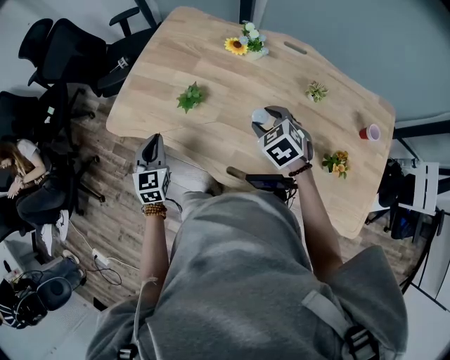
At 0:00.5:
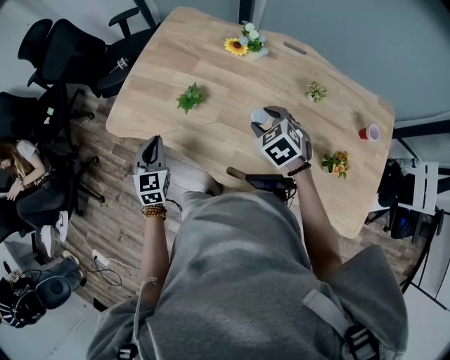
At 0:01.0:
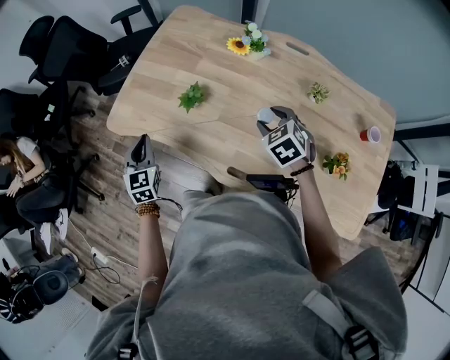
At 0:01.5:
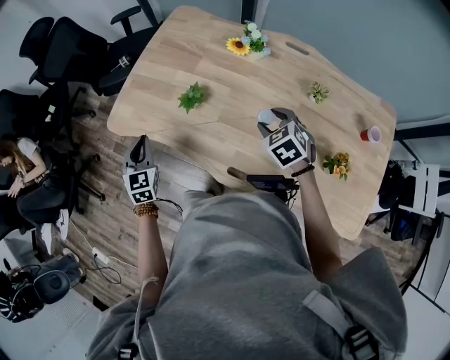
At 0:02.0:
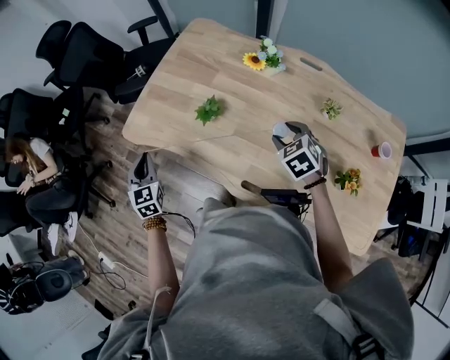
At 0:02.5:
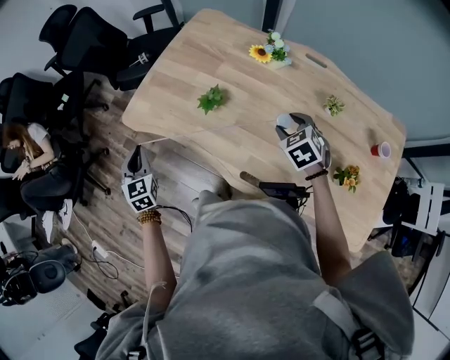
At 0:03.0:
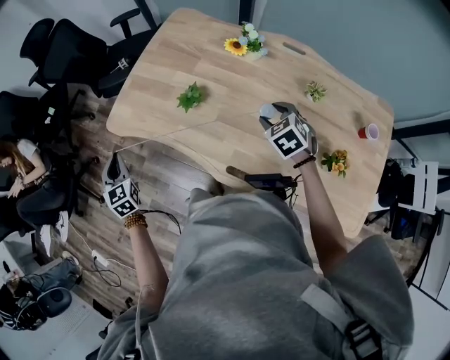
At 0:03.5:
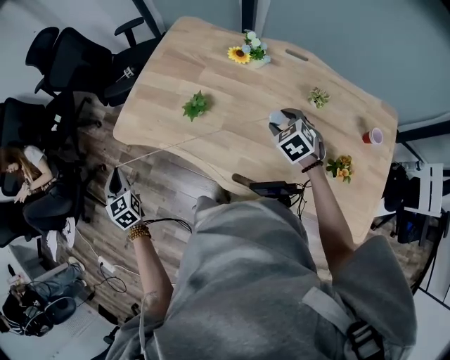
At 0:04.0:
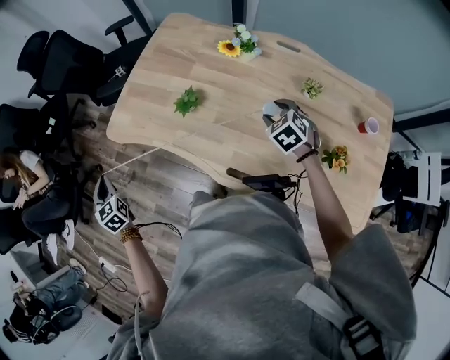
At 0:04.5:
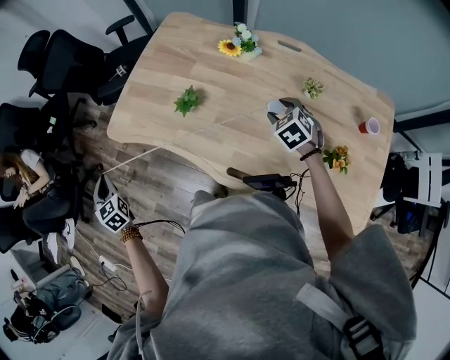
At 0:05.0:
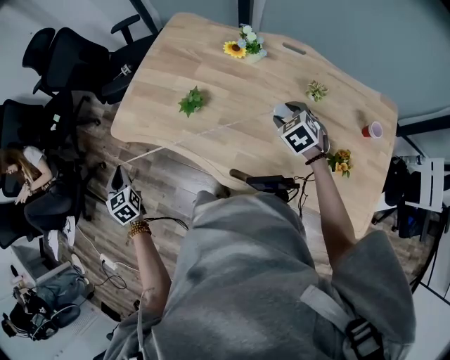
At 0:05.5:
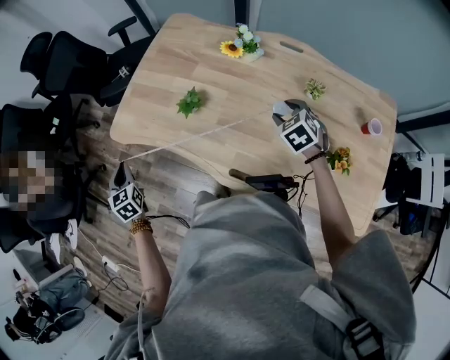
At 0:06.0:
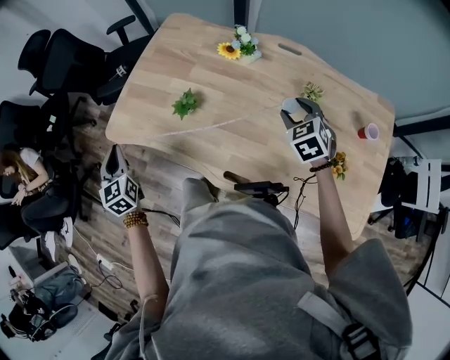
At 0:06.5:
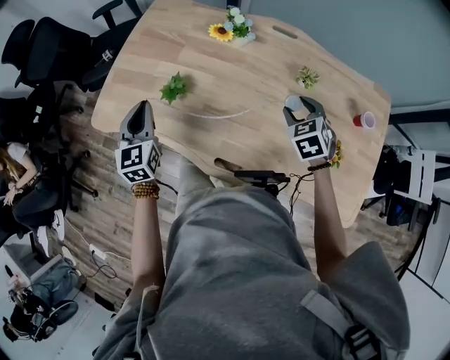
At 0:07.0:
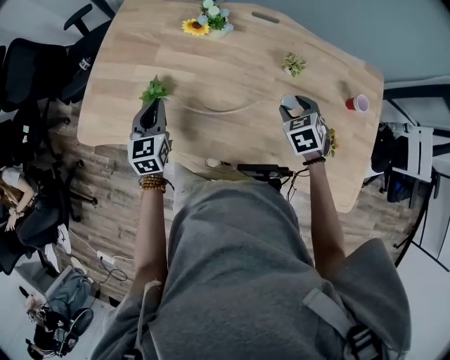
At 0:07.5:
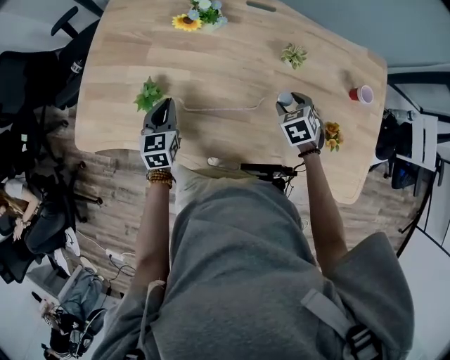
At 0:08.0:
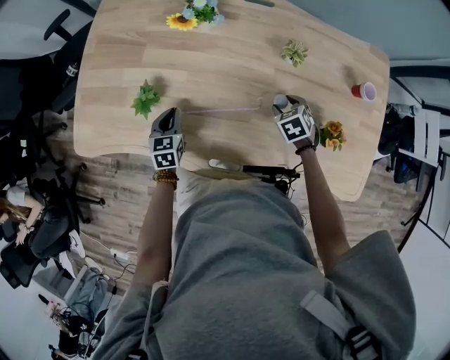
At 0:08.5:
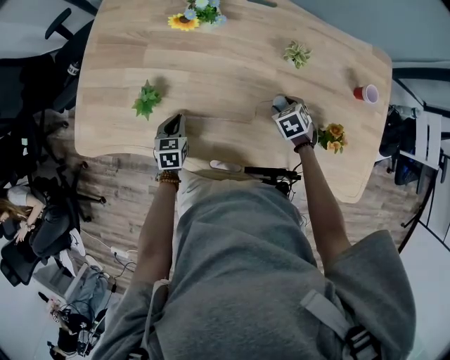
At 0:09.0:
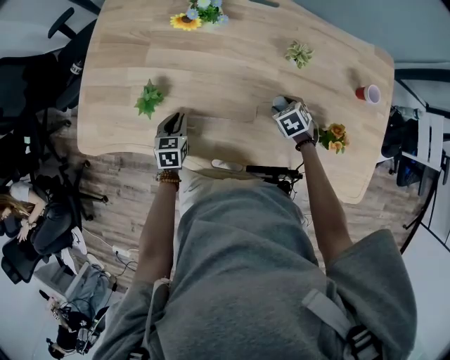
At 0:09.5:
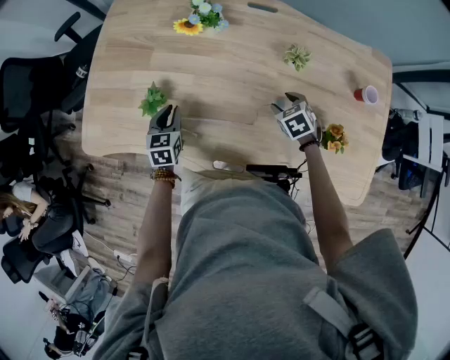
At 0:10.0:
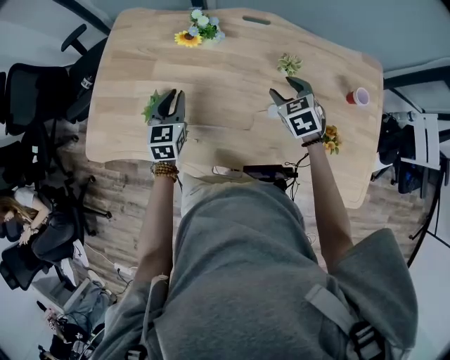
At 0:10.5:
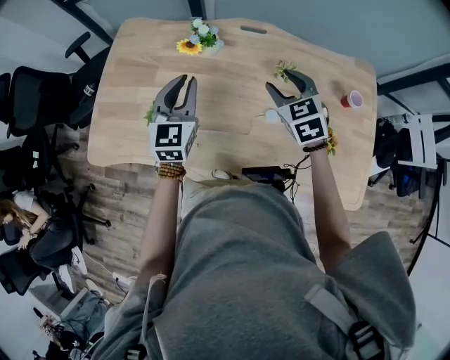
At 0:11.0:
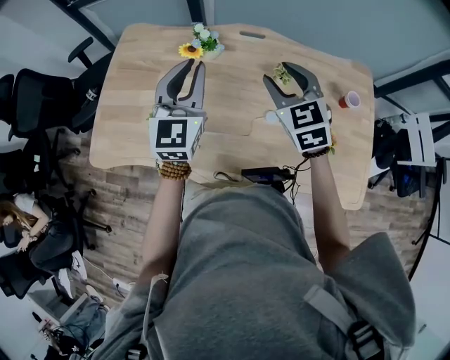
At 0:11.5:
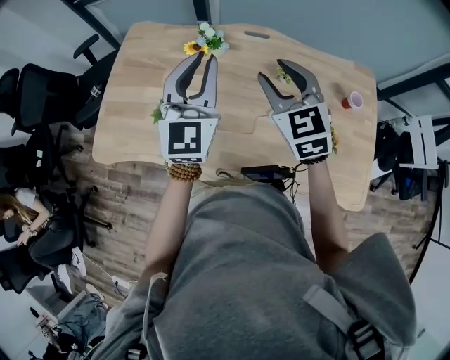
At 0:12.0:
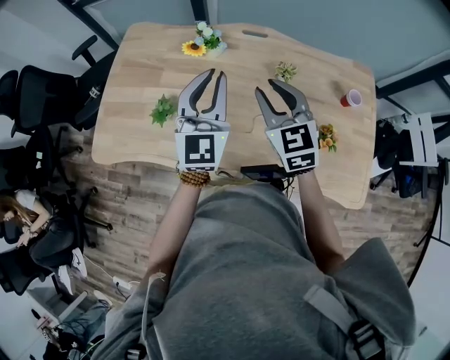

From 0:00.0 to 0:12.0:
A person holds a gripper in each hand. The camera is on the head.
From 0:00.0 to 0:02.0: The left gripper goes roughly 10 cm to the left.
From 0:02.0 to 0:04.0: The left gripper heads to the left, covering roughly 15 cm.
From 0:04.0 to 0:06.0: The right gripper heads to the right and upward, covering some 10 cm. The left gripper goes about 15 cm to the right.
From 0:06.0 to 0:08.0: The left gripper heads to the right, downward and forward, covering about 35 cm, and turns by some 40 degrees, while the right gripper heads downward, covering about 20 cm, and swivels some 30 degrees.
From 0:08.0 to 0:10.0: The two grippers go some 15 cm upward and forward. The right gripper turns by approximately 20 degrees.
From 0:10.0 to 0:12.0: The right gripper shifts roughly 20 cm upward, rotates some 30 degrees, and closes its fingers. The left gripper heads upward and to the right, covering roughly 25 cm, and tilts its fingers about 30 degrees upward.

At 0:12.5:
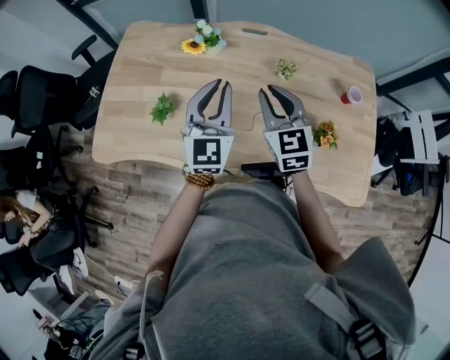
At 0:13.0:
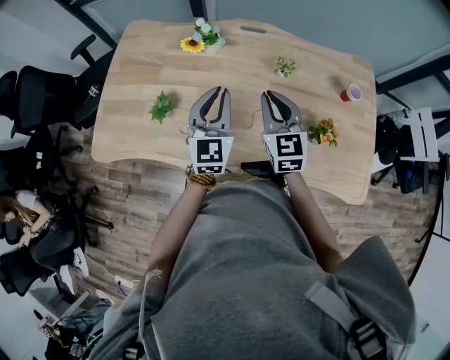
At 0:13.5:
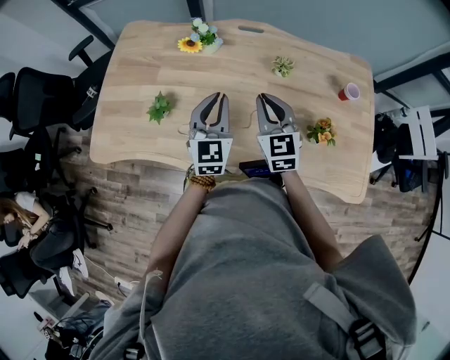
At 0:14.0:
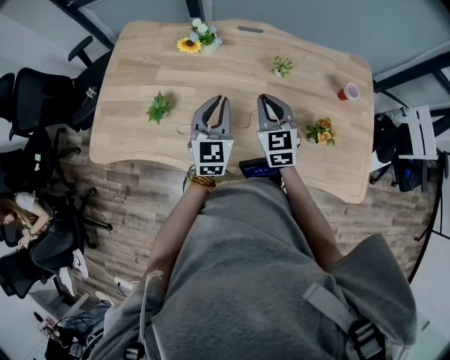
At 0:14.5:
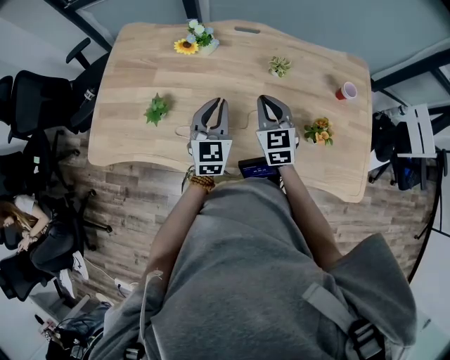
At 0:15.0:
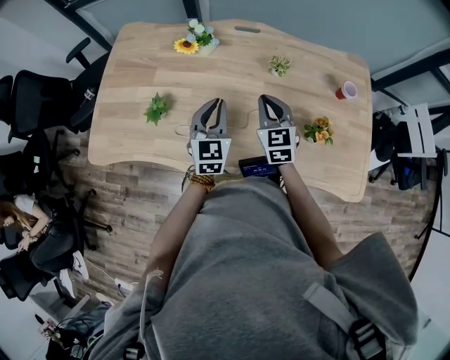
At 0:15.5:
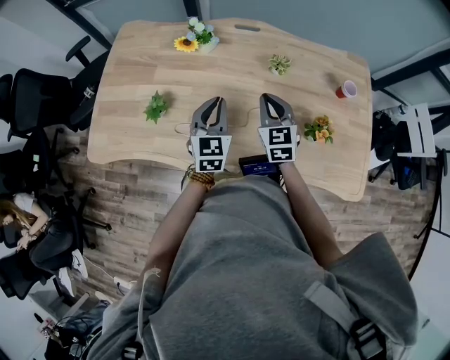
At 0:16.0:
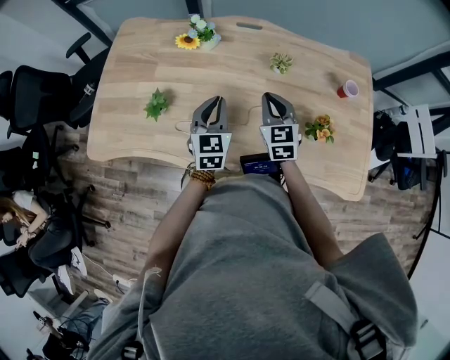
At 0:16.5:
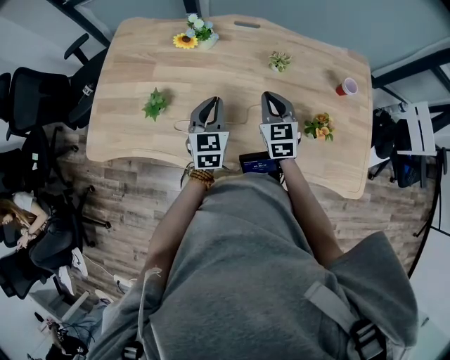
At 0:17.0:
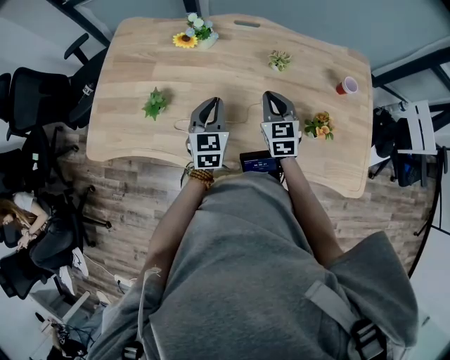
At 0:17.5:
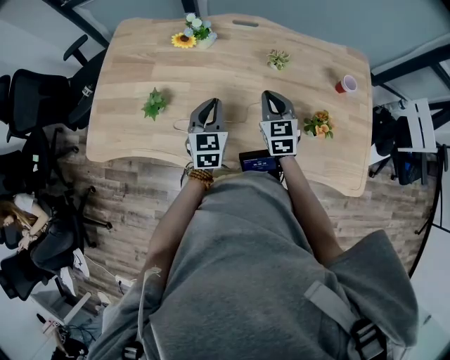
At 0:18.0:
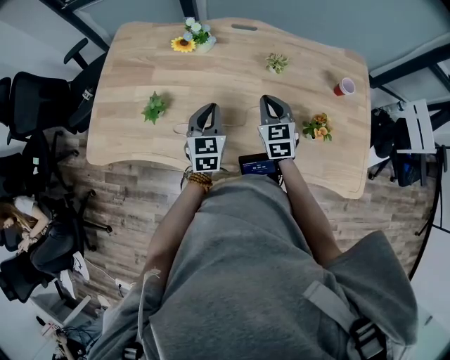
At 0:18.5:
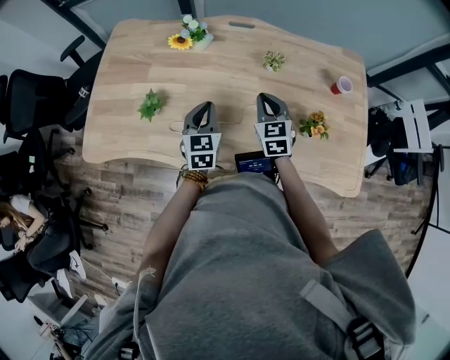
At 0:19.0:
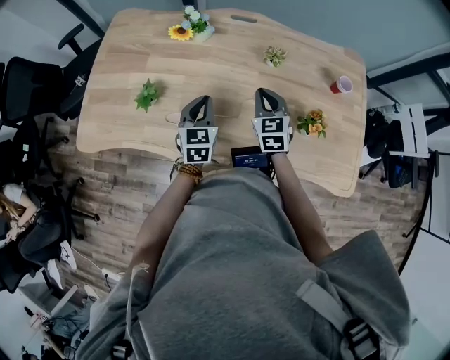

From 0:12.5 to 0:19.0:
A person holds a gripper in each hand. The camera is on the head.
From 0:12.5 to 0:14.5: Both grippers travel together downward, about 10 cm.
From 0:14.5 to 0:17.0: The grippers move only a little.
From 0:17.0 to 0:19.0: The grippers make only small movements.

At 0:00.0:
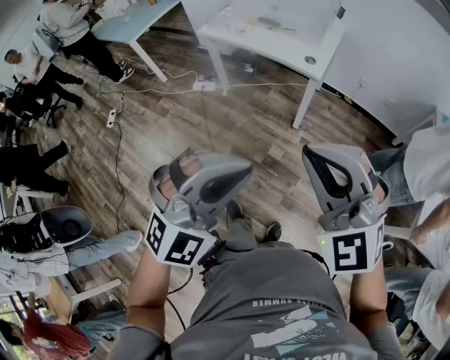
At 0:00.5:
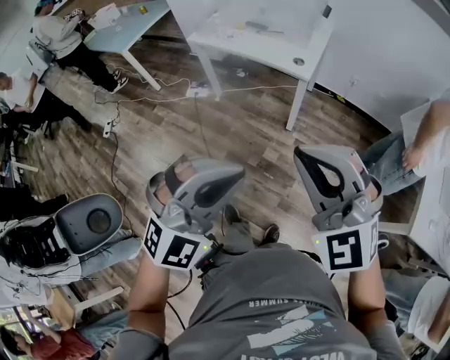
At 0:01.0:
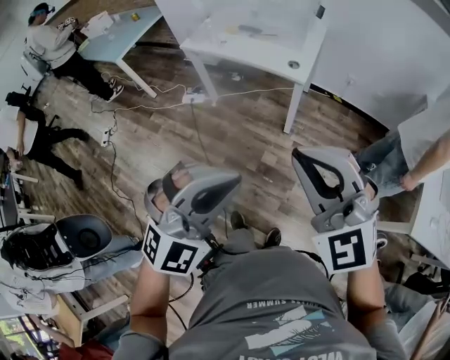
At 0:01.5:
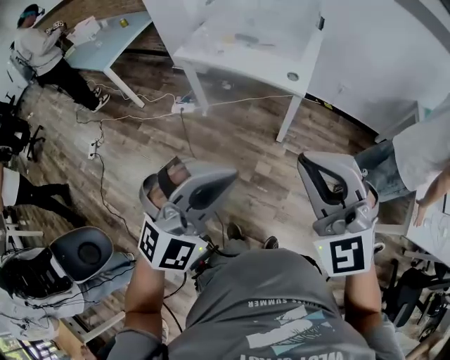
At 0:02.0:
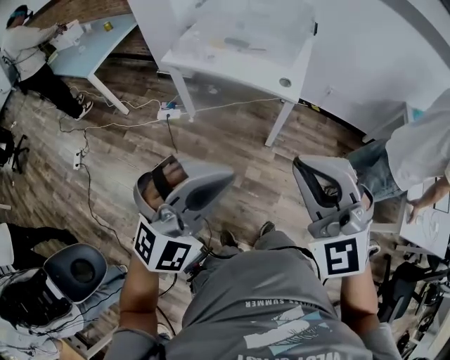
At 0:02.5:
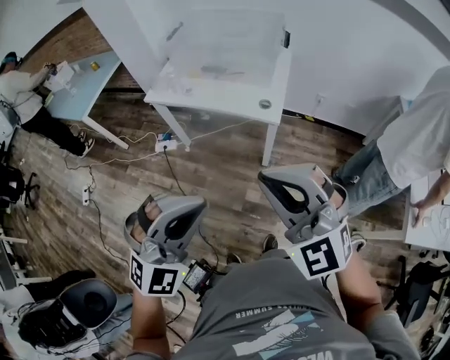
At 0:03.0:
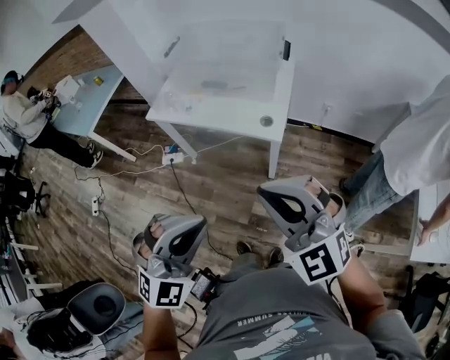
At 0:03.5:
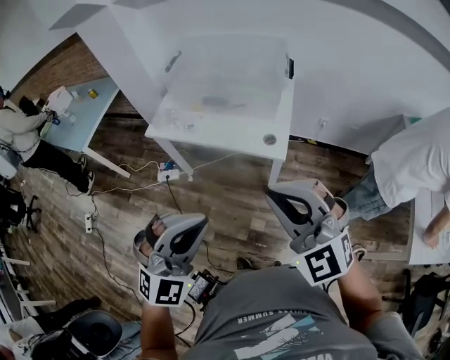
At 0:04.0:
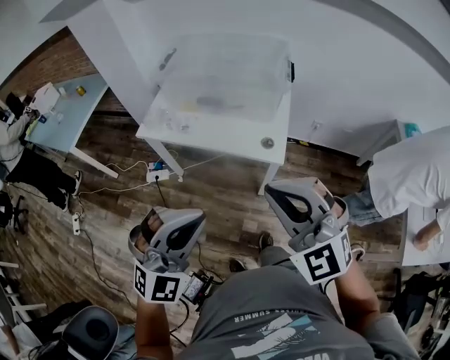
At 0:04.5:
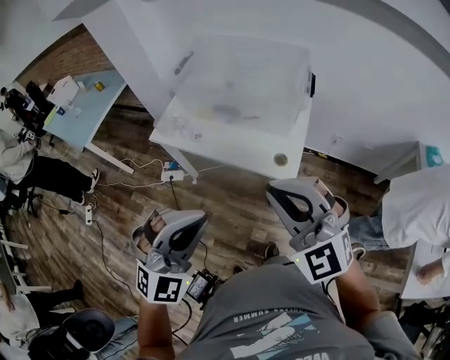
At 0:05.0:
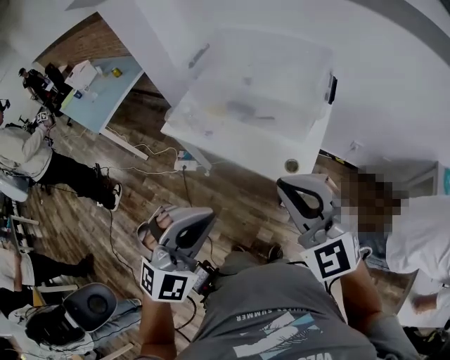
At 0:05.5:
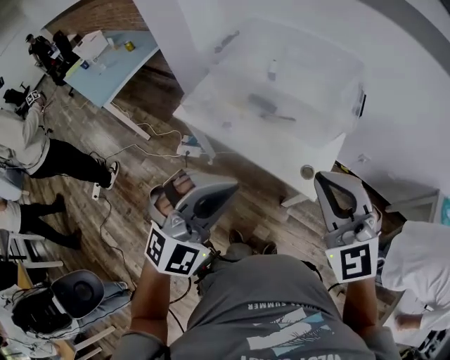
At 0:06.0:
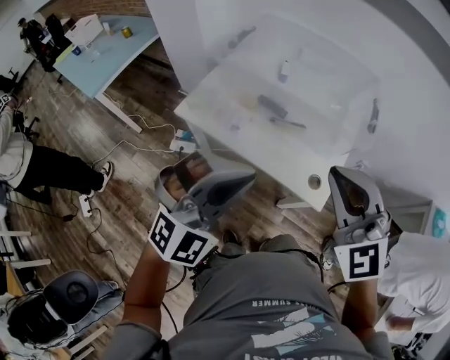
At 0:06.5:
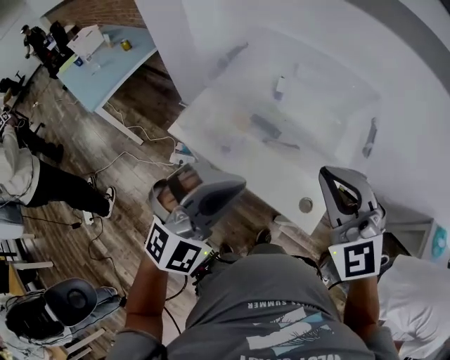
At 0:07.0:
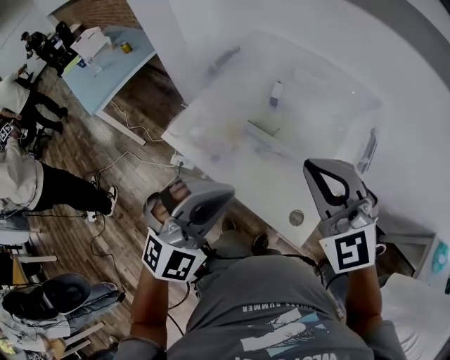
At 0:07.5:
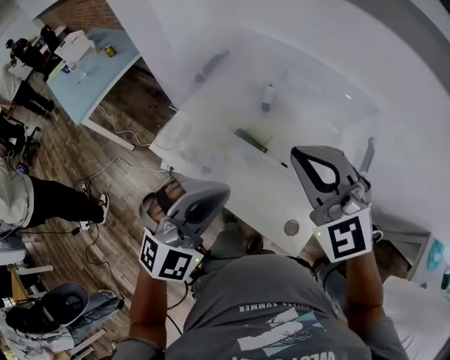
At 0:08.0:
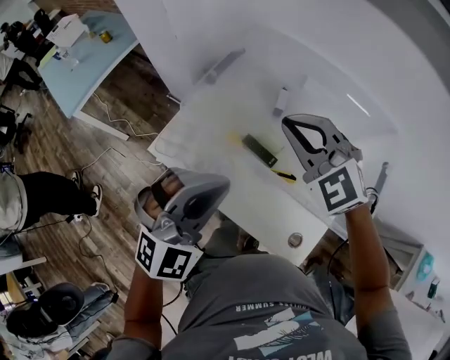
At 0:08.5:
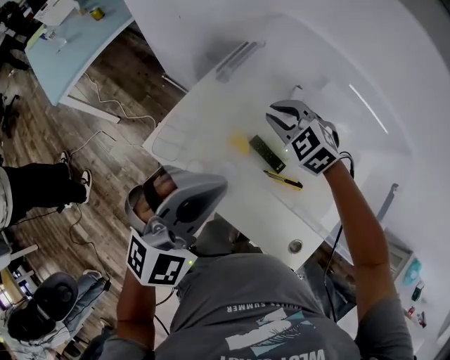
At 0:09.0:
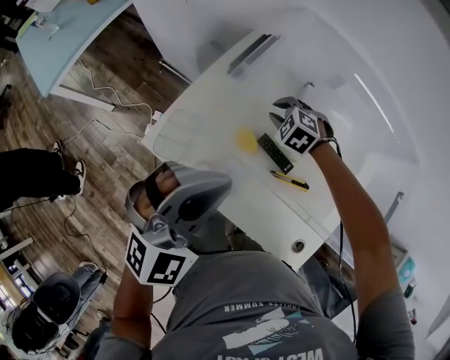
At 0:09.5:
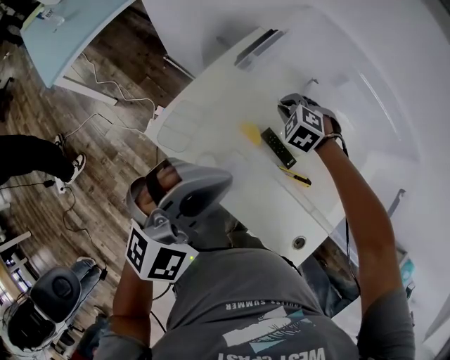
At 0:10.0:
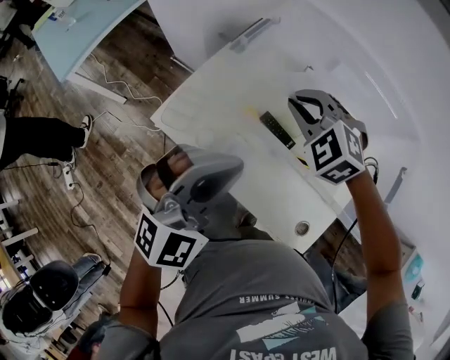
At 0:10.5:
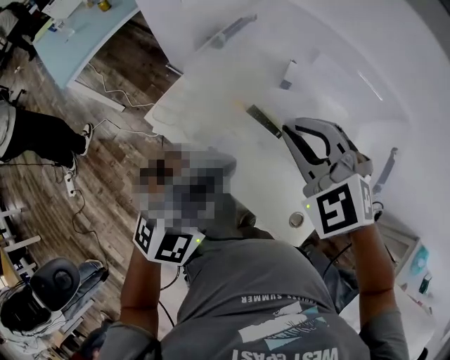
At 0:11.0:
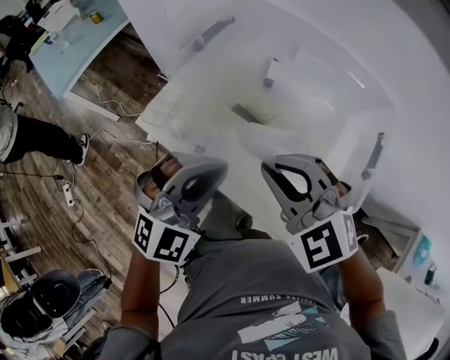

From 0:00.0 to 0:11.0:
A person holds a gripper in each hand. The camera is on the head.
From 0:00.0 to 0:02.0: Both grippers move forward and to the left, roughly 15 cm.
From 0:02.0 to 0:03.5: The grippers both shift forward by roughly 15 cm.
From 0:03.5 to 0:05.5: The grippers both shift forward by about 20 cm.
From 0:05.5 to 0:07.5: Both grippers travel together forward, some 25 cm.
From 0:07.5 to 0:09.0: The right gripper travels downward and forward by roughly 50 cm, angles its fingers downward, by some 50 degrees, and opens up. The left gripper travels forward, to the left and downward by about 20 cm.
From 0:09.0 to 0:11.0: The left gripper is displaced backward and to the right by about 15 cm. The right gripper moves backward and upward, some 40 cm, and tilts its fingers some 30 degrees upward.
